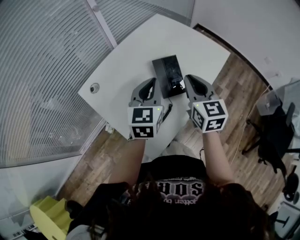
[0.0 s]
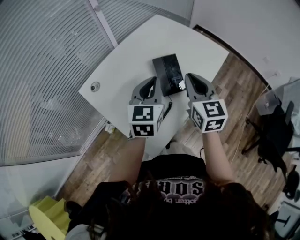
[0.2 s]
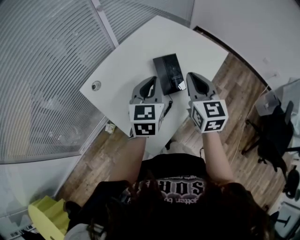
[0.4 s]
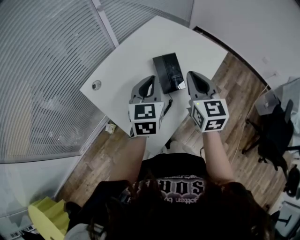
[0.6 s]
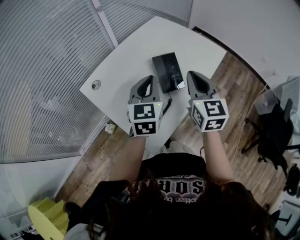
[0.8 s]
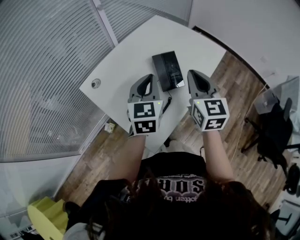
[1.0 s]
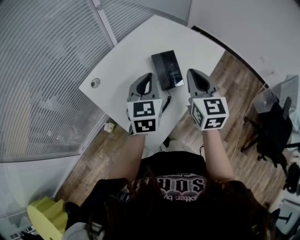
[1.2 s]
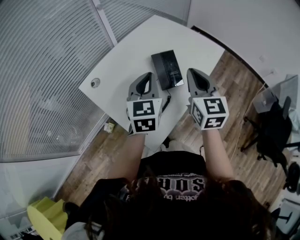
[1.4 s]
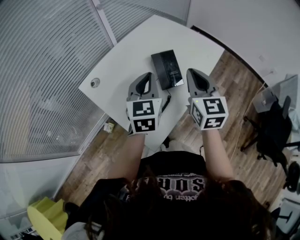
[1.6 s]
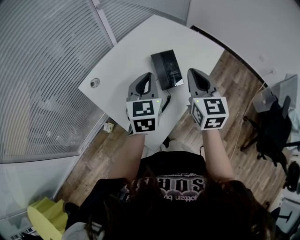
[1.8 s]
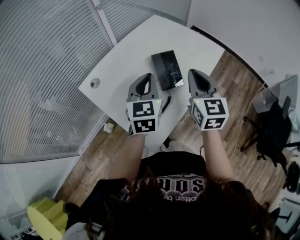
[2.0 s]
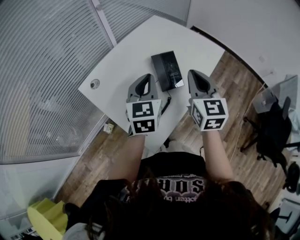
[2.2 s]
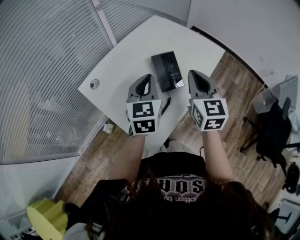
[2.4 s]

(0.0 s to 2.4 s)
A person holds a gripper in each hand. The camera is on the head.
0.0 s - 1.2 s: The right gripper shifts by some 5 cm.
1.2 s - 2.4 s: The two grippers keep their place.

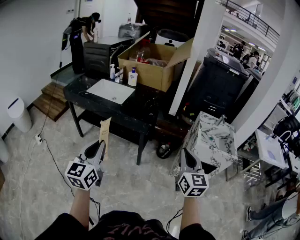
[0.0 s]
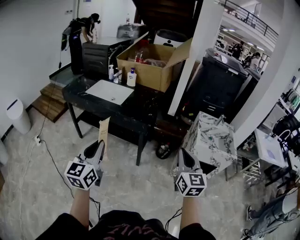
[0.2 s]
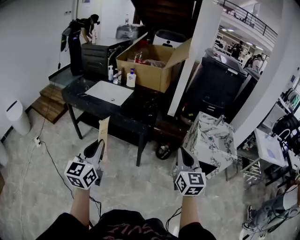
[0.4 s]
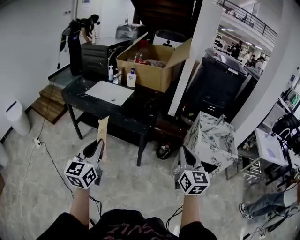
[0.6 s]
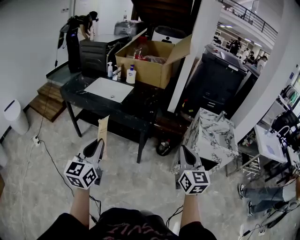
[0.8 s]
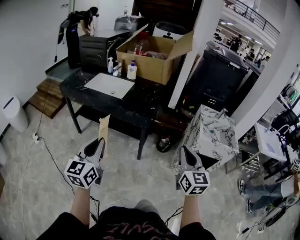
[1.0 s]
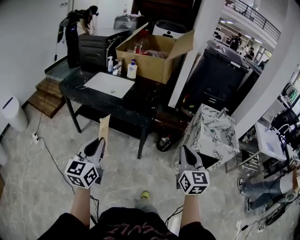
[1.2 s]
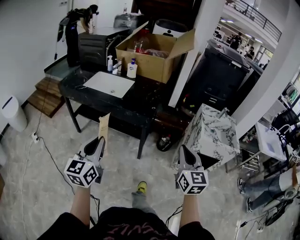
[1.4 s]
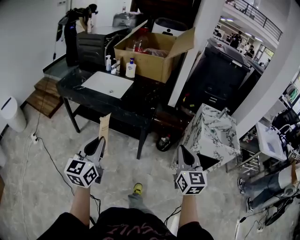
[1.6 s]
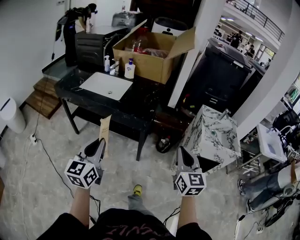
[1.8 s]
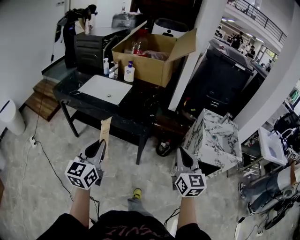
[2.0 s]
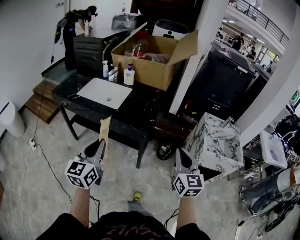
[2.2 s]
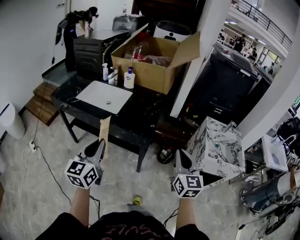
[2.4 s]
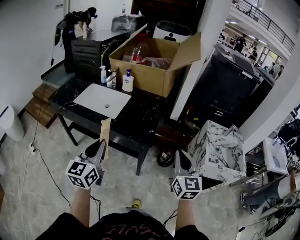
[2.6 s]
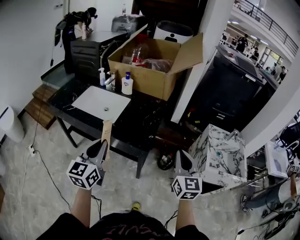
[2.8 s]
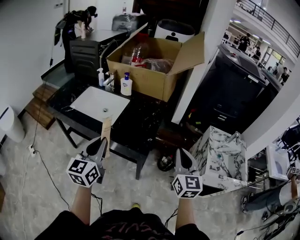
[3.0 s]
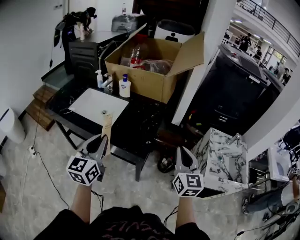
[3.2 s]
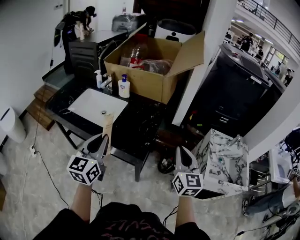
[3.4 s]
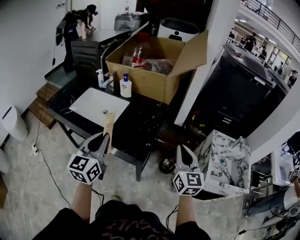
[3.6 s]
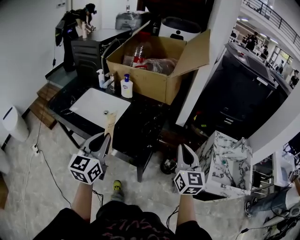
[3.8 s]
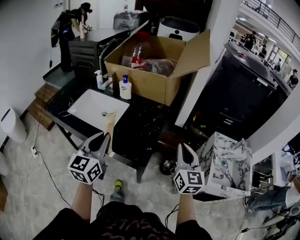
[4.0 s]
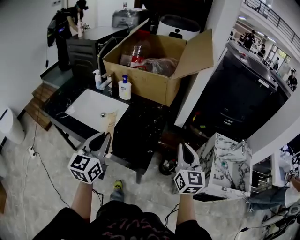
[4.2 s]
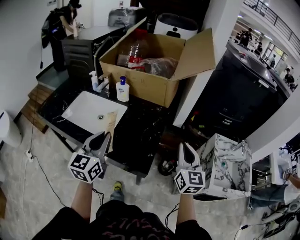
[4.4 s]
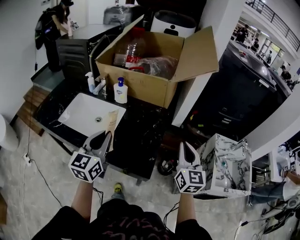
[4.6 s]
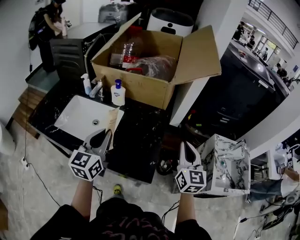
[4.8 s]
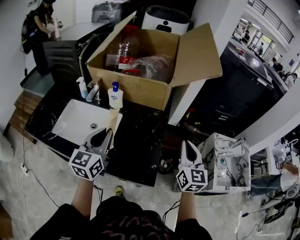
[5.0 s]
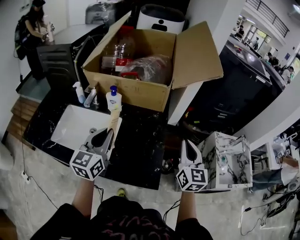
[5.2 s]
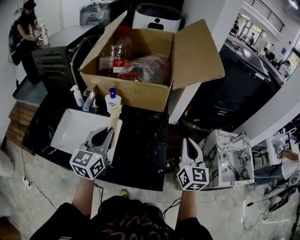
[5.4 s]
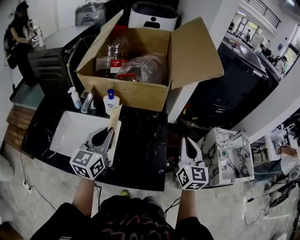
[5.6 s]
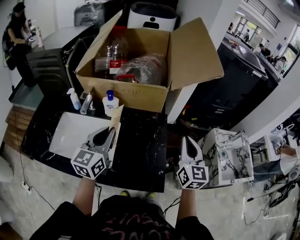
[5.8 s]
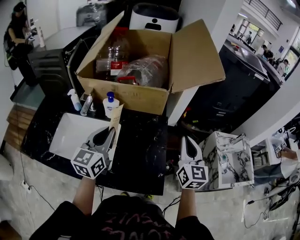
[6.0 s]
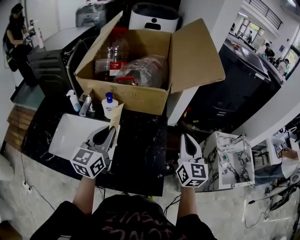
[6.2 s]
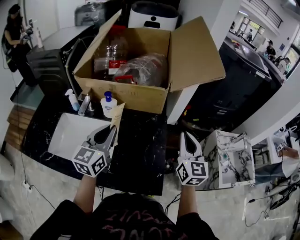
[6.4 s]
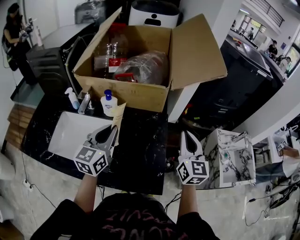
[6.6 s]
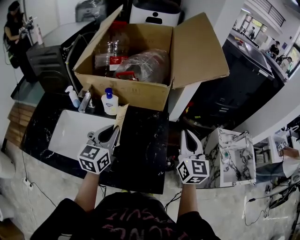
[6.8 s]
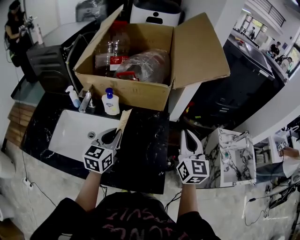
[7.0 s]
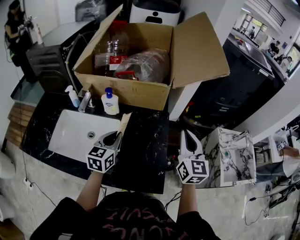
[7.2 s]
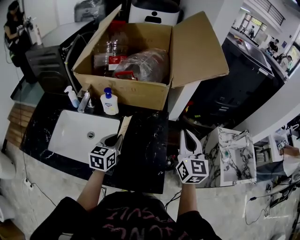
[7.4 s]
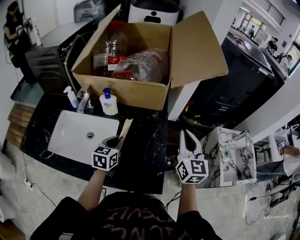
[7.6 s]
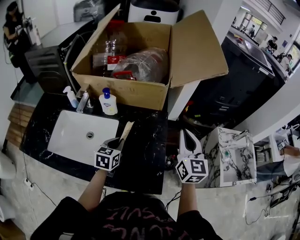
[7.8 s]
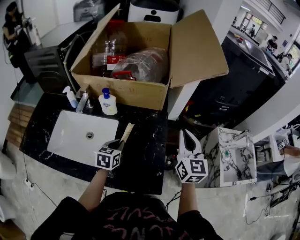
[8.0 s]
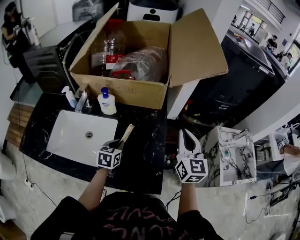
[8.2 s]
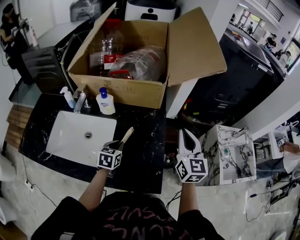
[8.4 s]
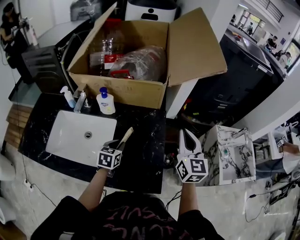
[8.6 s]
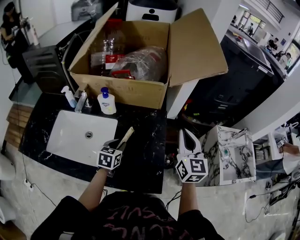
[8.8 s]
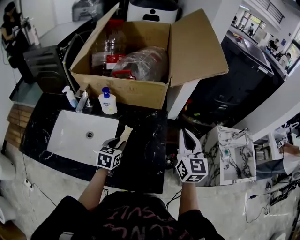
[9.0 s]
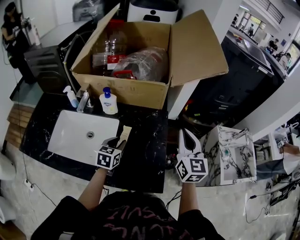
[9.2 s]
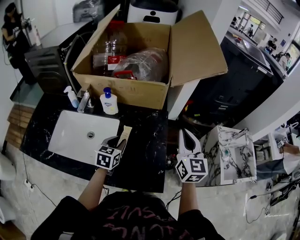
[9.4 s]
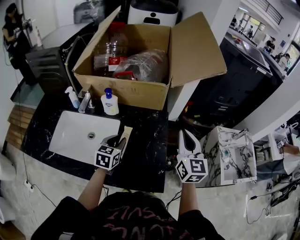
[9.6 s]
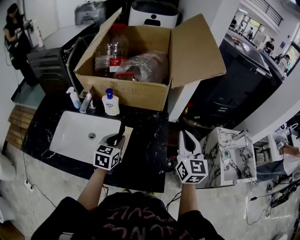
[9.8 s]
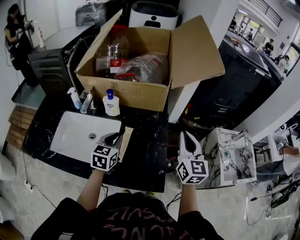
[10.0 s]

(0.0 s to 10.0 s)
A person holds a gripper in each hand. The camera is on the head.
0.0 s - 1.4 s: The left gripper moves about 5 cm. The right gripper goes some 5 cm to the left.
1.4 s - 2.8 s: The grippers both shift forward by approximately 25 cm.
2.8 s - 4.2 s: Both grippers move forward, roughly 15 cm.
4.2 s - 5.8 s: The right gripper goes about 15 cm forward and to the left, while the left gripper travels forward by some 20 cm.
5.8 s - 7.2 s: The left gripper travels downward by roughly 10 cm.
7.2 s - 8.6 s: The left gripper travels downward by approximately 10 cm, and rotates roughly 20 degrees.
8.6 s - 10.0 s: The left gripper heads upward, covering roughly 10 cm.

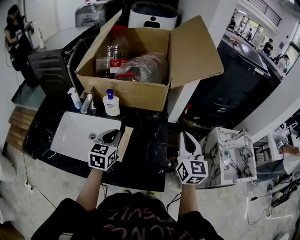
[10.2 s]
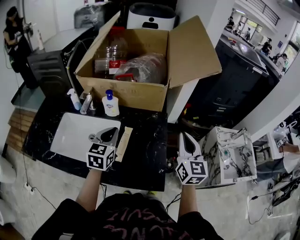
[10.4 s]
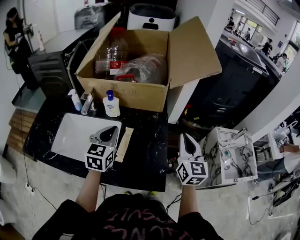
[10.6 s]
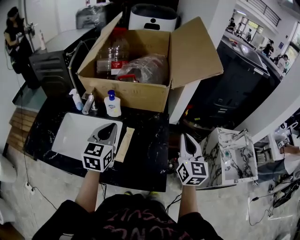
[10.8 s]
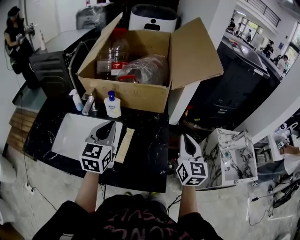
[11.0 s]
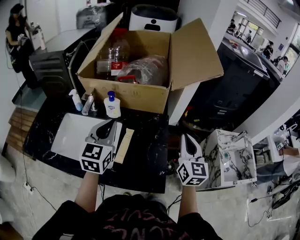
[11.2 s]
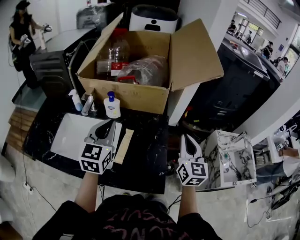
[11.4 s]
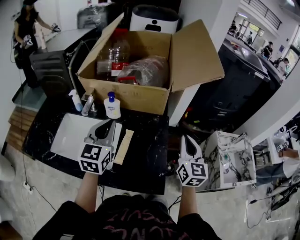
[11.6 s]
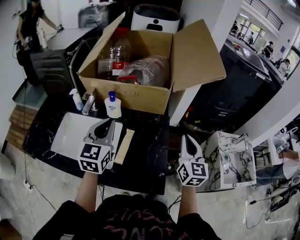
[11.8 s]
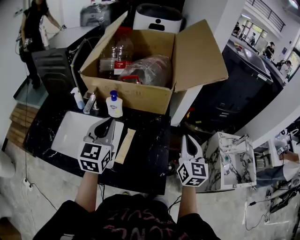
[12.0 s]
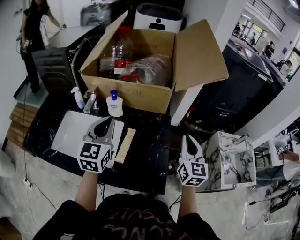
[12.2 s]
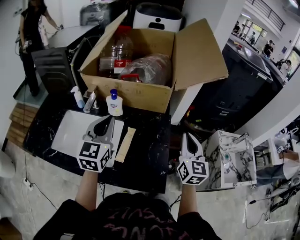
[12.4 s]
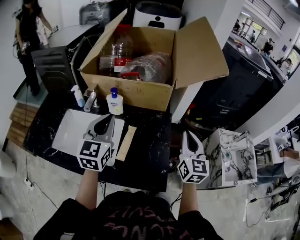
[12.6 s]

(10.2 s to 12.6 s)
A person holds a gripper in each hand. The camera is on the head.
10.2 s - 11.4 s: The left gripper is displaced upward by some 10 cm.
11.4 s - 12.6 s: The grippers move only a little.

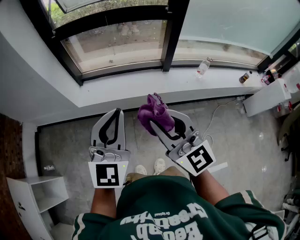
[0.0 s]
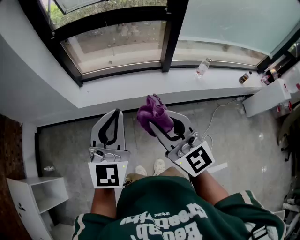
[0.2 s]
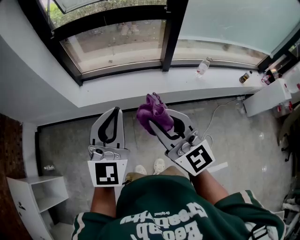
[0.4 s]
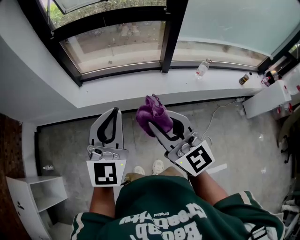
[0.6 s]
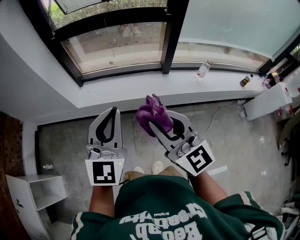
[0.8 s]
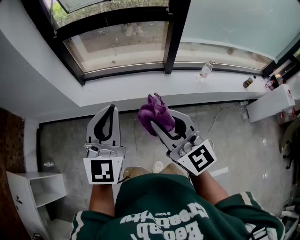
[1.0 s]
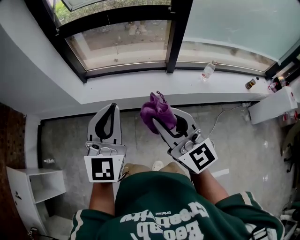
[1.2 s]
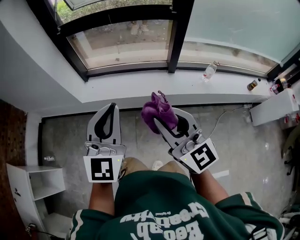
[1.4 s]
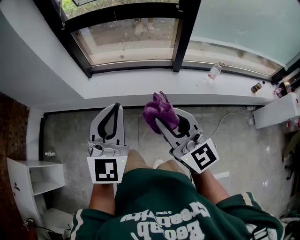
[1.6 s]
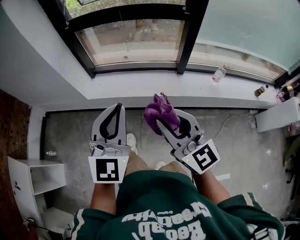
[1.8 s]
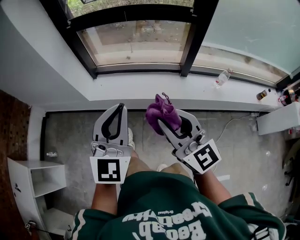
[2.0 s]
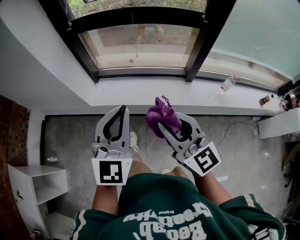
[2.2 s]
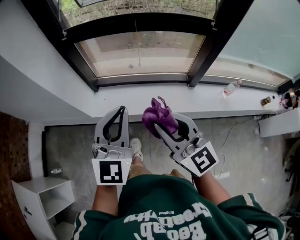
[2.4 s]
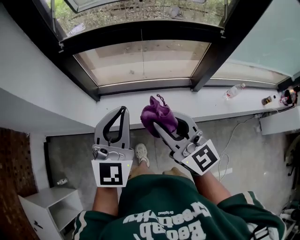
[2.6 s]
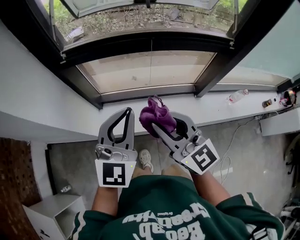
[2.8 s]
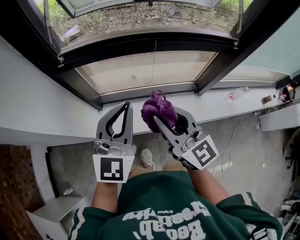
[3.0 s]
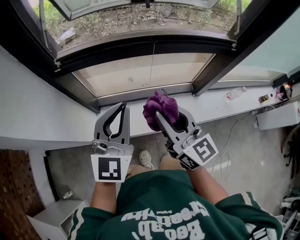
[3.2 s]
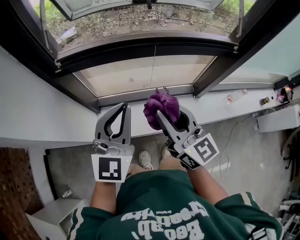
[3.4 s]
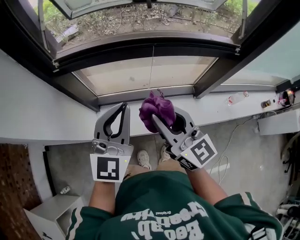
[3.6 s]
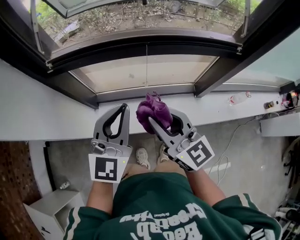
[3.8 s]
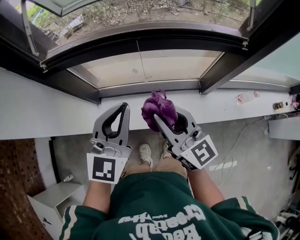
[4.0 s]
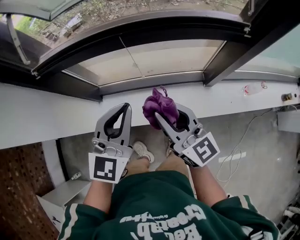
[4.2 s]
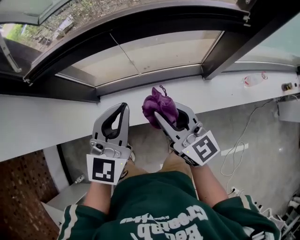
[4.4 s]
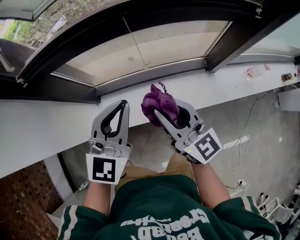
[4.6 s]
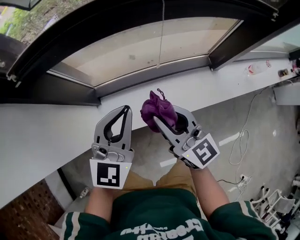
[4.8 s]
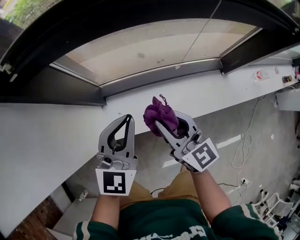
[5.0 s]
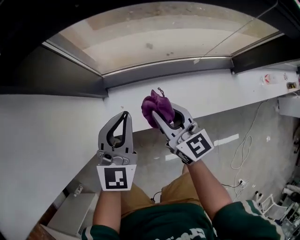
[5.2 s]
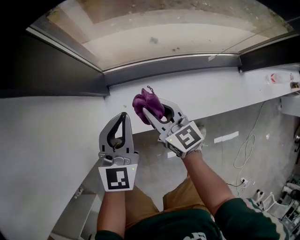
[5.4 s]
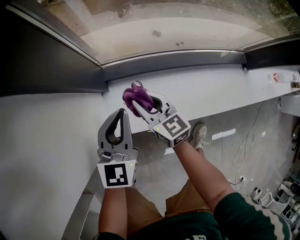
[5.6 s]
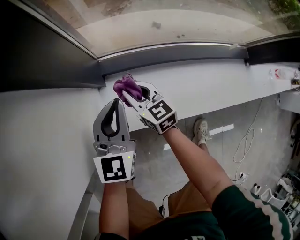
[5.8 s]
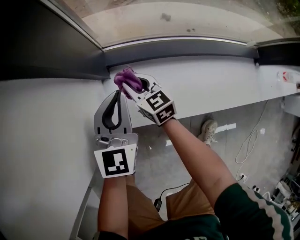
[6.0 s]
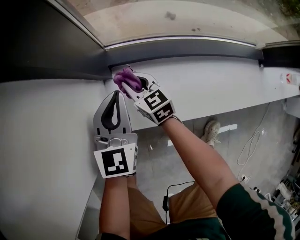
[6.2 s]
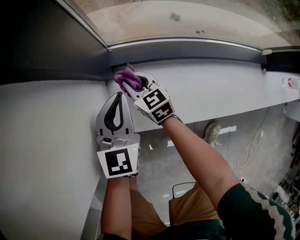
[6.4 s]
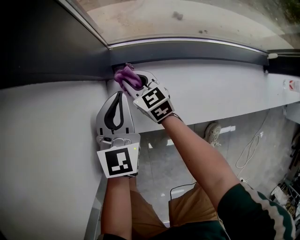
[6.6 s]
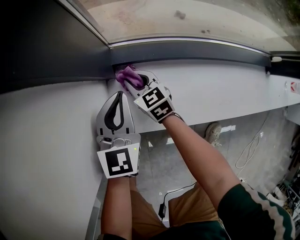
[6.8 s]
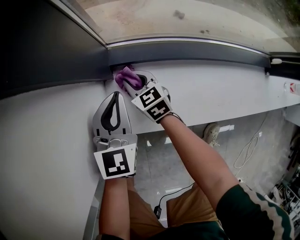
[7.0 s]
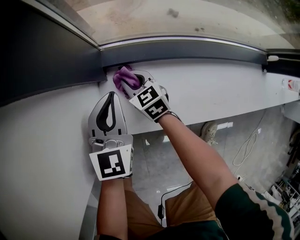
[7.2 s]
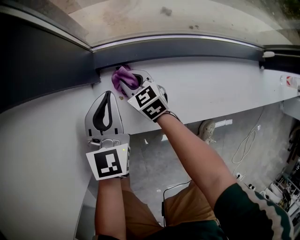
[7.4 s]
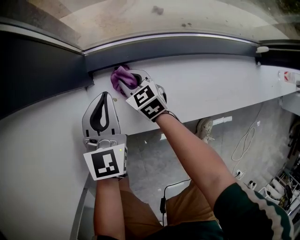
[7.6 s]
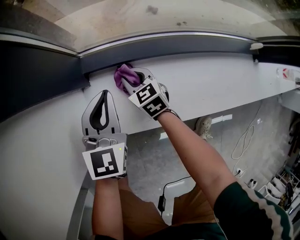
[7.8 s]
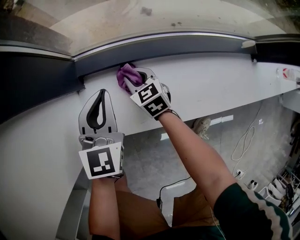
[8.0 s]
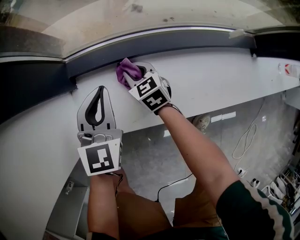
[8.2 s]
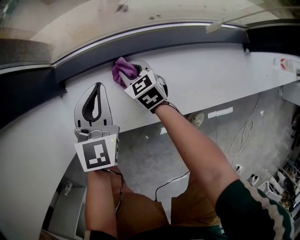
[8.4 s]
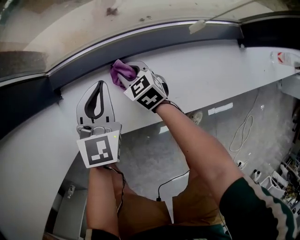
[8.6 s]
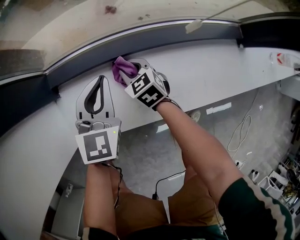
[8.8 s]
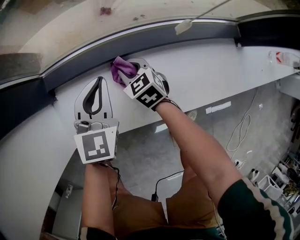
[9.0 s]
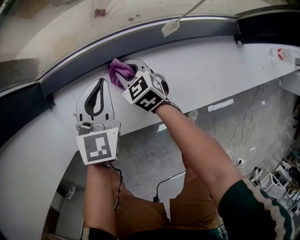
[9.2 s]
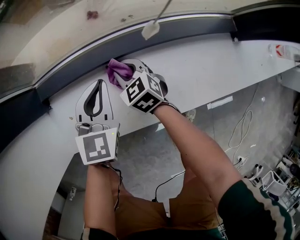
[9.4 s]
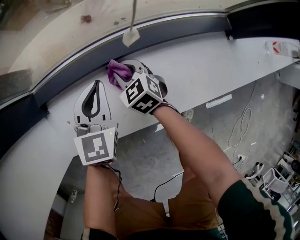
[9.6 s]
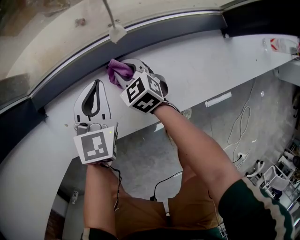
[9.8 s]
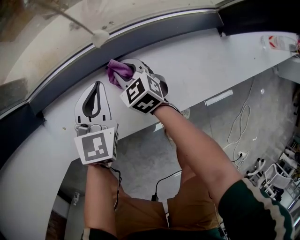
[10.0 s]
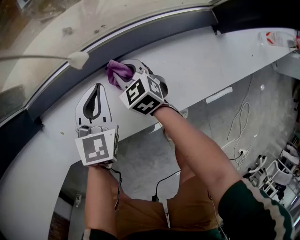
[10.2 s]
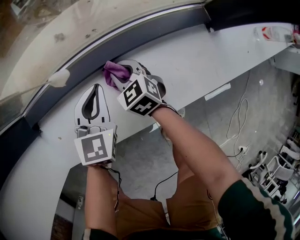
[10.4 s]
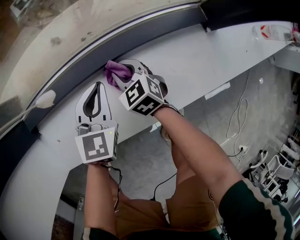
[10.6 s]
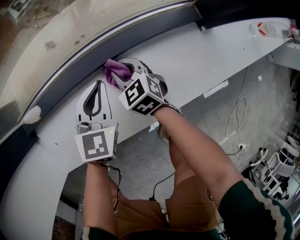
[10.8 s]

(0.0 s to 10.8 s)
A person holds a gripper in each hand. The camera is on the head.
0.0 s - 1.6 s: The right gripper goes about 5 cm to the right.
1.6 s - 3.0 s: The pair of grippers is taken forward, some 50 cm.
3.0 s - 4.6 s: Both grippers travel together downward, to the right and forward, some 15 cm.
4.6 s - 6.2 s: The two grippers go some 50 cm downward and to the left. The left gripper rotates roughly 30 degrees. The right gripper tips its fingers downward by roughly 30 degrees.
6.2 s - 7.8 s: The right gripper shifts roughly 10 cm to the right and downward; the left gripper moves to the right, approximately 5 cm.
7.8 s - 9.2 s: The grippers both shift to the right by about 15 cm.
9.2 s - 10.8 s: The grippers both shift to the right by approximately 15 cm.
